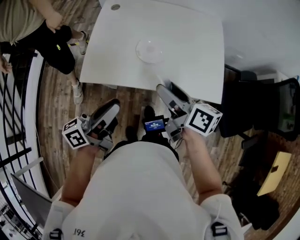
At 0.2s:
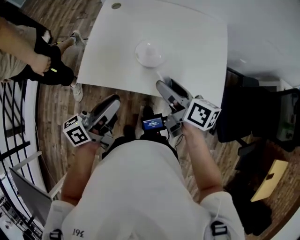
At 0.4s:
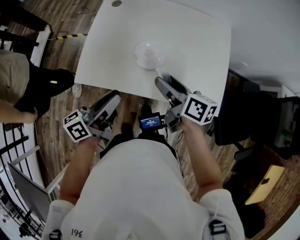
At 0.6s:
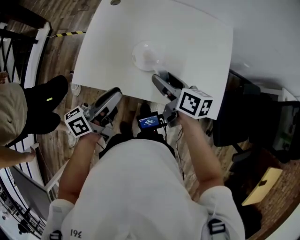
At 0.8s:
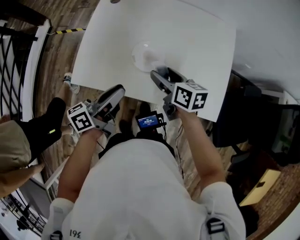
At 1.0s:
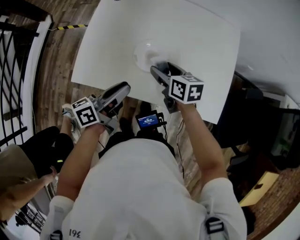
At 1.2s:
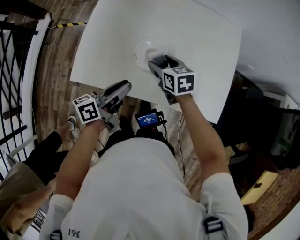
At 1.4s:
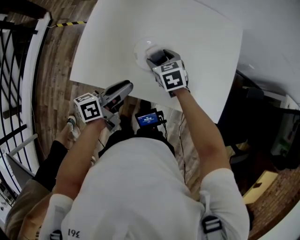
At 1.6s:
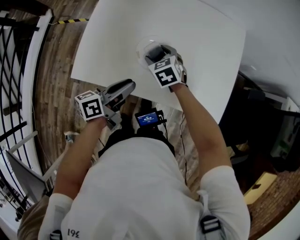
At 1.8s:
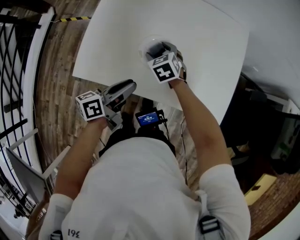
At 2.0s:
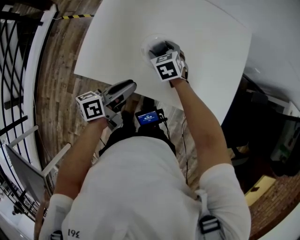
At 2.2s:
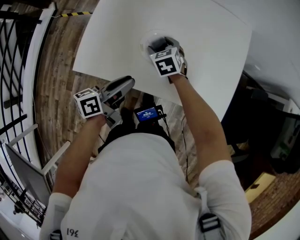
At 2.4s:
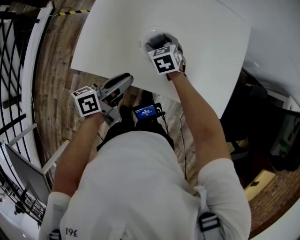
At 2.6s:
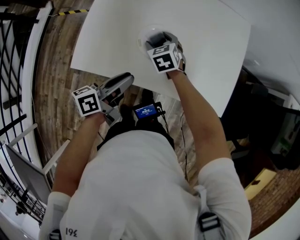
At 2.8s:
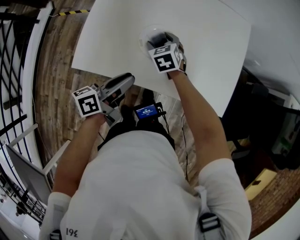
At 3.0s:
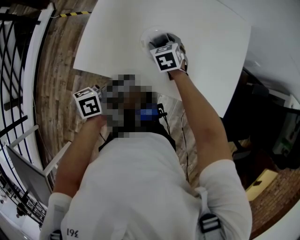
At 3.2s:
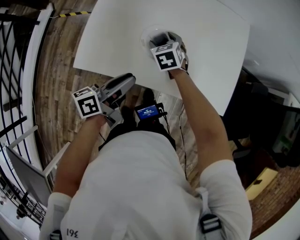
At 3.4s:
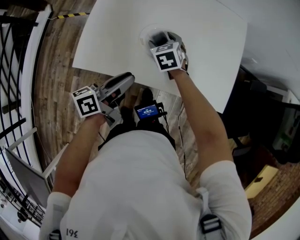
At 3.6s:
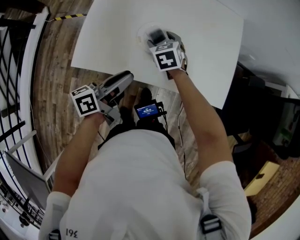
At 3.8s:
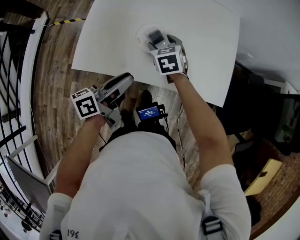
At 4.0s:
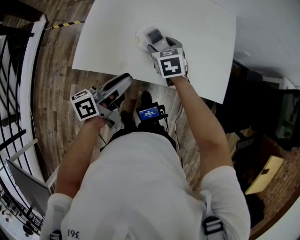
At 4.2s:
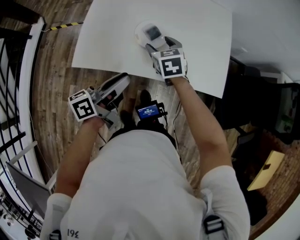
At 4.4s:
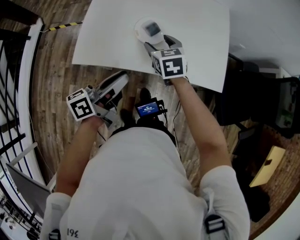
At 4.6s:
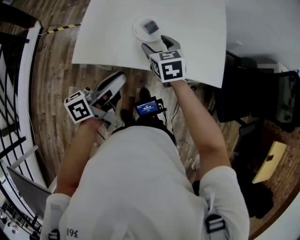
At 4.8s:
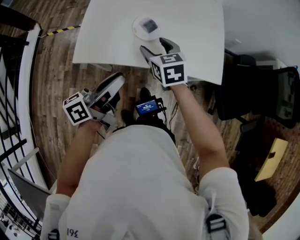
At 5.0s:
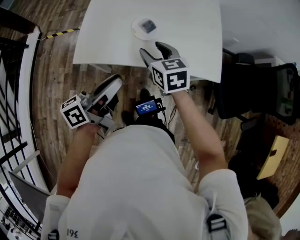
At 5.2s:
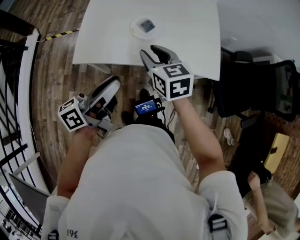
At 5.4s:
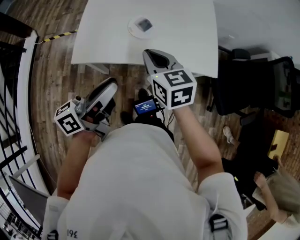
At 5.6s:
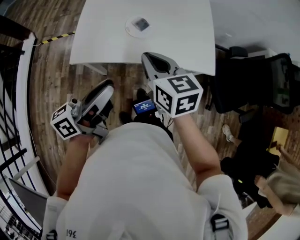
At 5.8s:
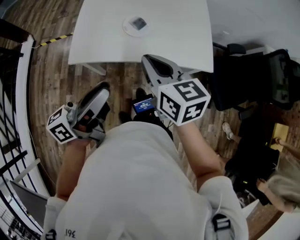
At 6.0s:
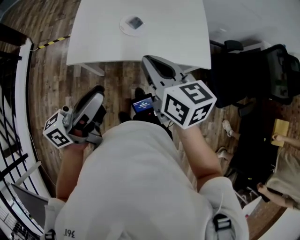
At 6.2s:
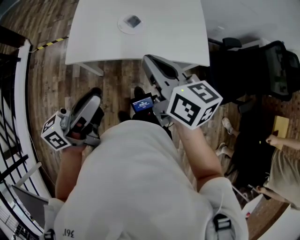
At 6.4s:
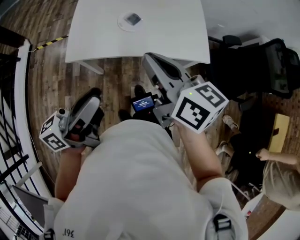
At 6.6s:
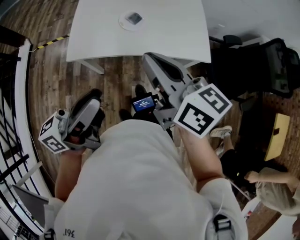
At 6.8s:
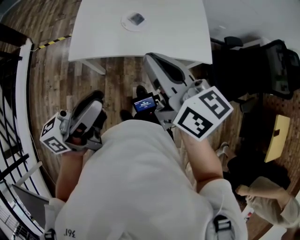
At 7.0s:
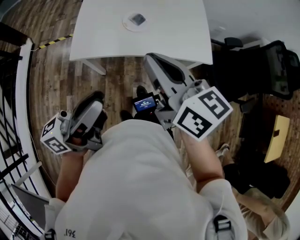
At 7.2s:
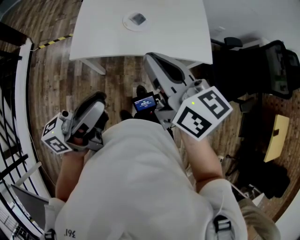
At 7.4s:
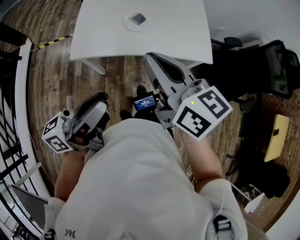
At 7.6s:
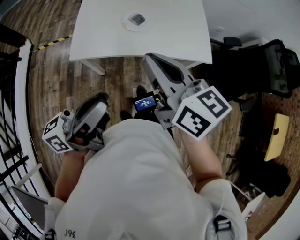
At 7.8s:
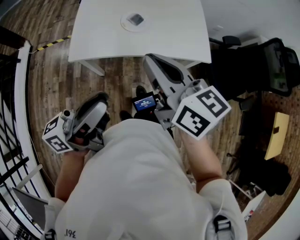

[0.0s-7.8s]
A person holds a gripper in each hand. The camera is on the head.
0.0s to 1.6s: The two grippers go some 25 cm forward and downward. The right gripper twists about 60 degrees counterclockwise, seen from behind.
1.6s to 3.2s: The grippers make only small movements.
3.2s to 4.6s: The grippers both shift backward and upward by some 15 cm.
4.6s to 6.2s: Both grippers travel together backward and upward, roughly 25 cm. The right gripper swivels roughly 40 degrees, and closes its fingers.
6.2s to 7.8s: The right gripper moves roughly 5 cm.

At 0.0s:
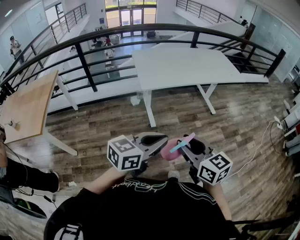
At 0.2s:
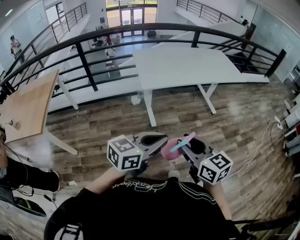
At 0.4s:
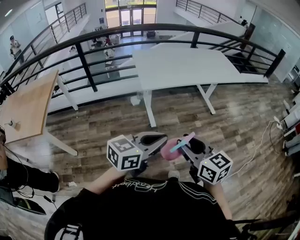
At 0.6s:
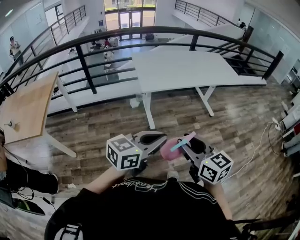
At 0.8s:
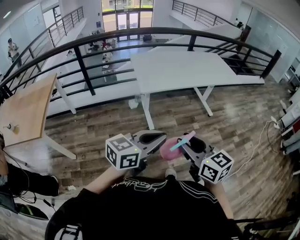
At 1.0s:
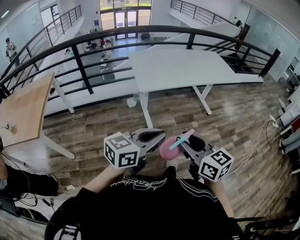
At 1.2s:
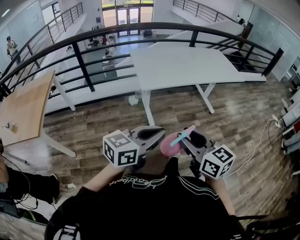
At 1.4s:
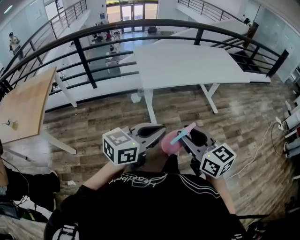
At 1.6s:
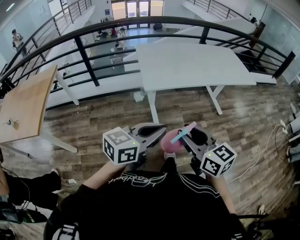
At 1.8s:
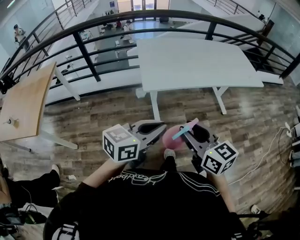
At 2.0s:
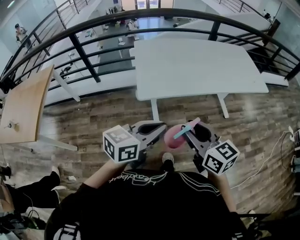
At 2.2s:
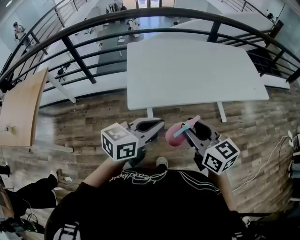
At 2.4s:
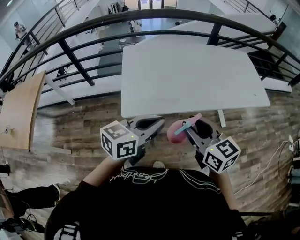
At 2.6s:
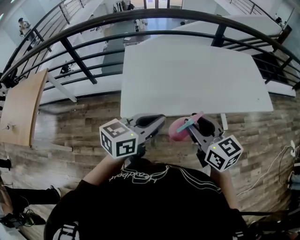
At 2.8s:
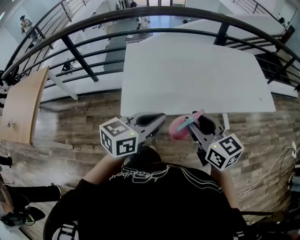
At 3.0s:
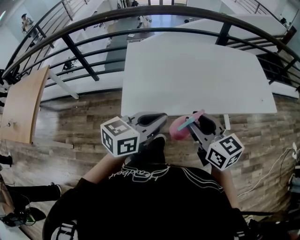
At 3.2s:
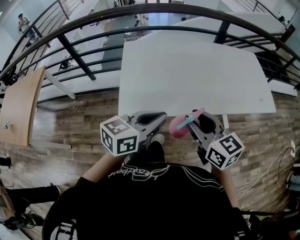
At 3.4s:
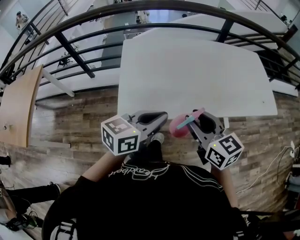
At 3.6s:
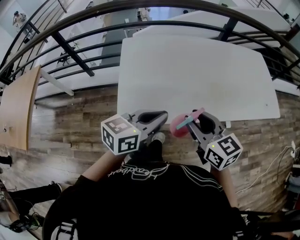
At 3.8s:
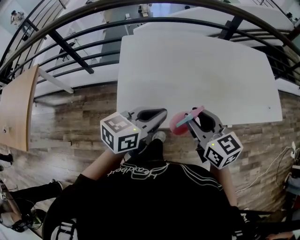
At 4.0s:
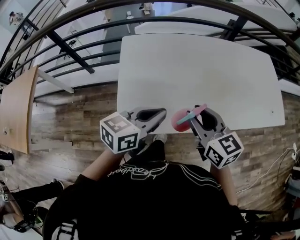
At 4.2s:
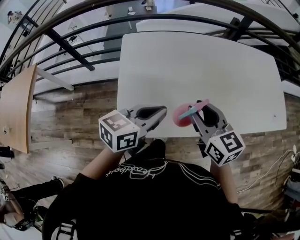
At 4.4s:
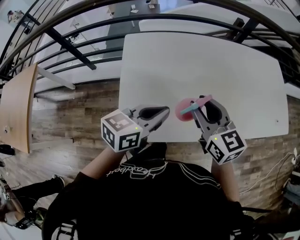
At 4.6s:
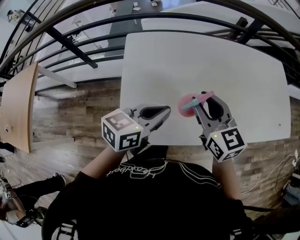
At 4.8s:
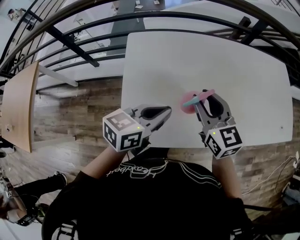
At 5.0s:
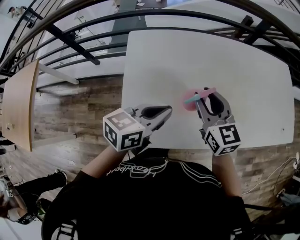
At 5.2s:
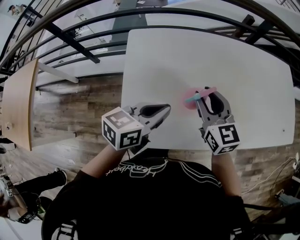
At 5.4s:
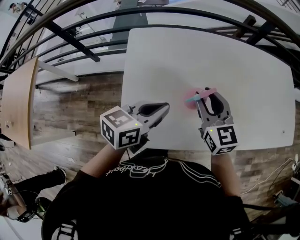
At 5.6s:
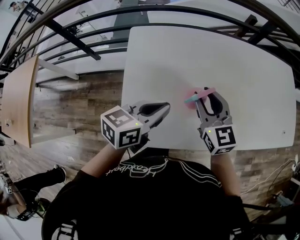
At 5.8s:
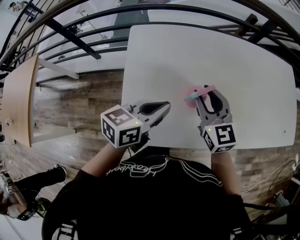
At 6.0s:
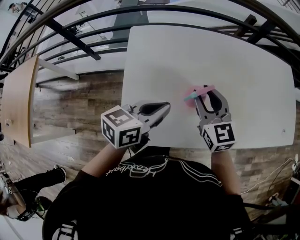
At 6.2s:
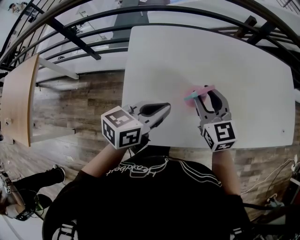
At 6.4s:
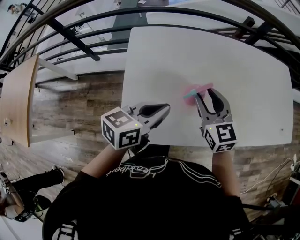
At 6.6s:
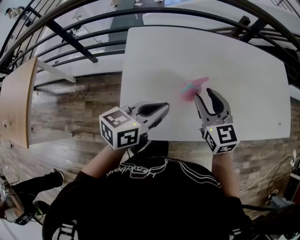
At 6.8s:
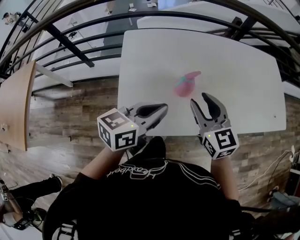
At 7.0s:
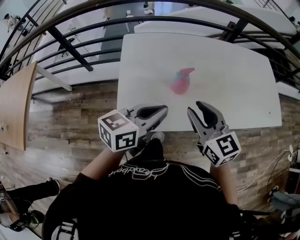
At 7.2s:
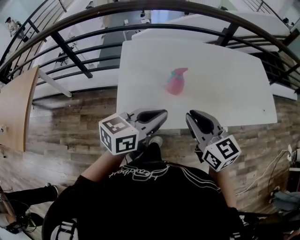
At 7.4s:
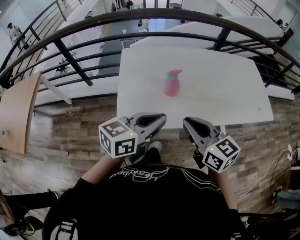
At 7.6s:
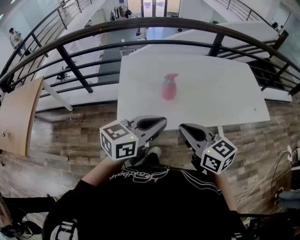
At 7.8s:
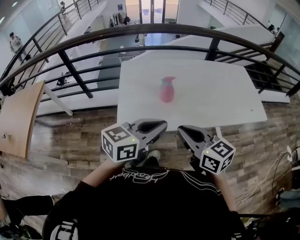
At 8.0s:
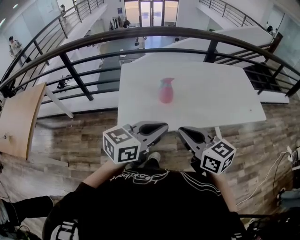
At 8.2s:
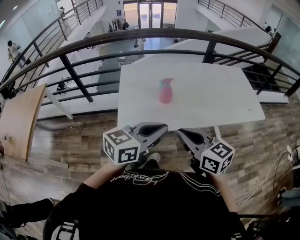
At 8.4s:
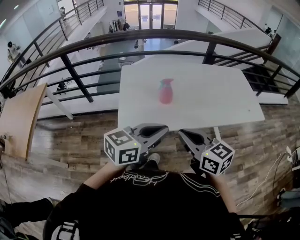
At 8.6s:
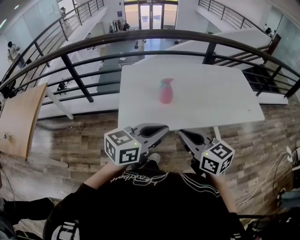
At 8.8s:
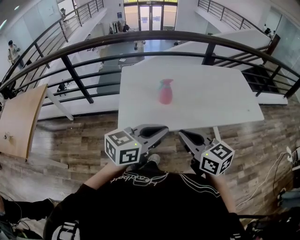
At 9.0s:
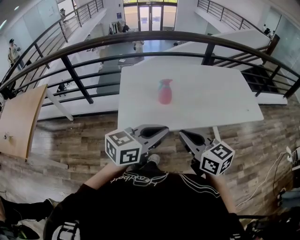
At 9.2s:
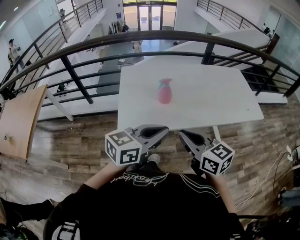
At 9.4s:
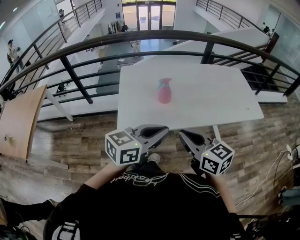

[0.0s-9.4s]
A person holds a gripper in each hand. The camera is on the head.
0.0s to 1.6s: The grippers both shift forward by roughly 10 cm.
1.6s to 3.2s: Both grippers travel together forward, some 35 cm.
3.2s to 4.8s: The left gripper shifts some 25 cm forward and downward. Meanwhile the right gripper goes about 25 cm forward.
4.8s to 6.2s: There are only small adjustments of the grippers.
6.2s to 7.8s: The grippers both shift backward and upward by about 30 cm. The left gripper swivels about 20 degrees. Meanwhile the right gripper closes its fingers.
7.8s to 9.4s: The grippers move only a little.

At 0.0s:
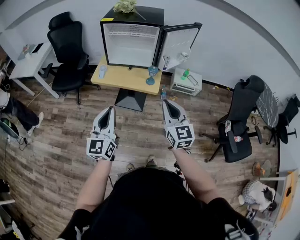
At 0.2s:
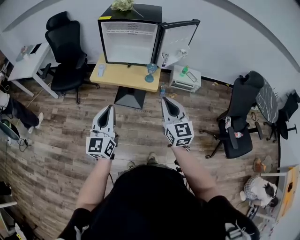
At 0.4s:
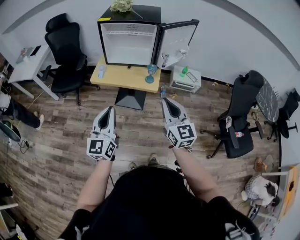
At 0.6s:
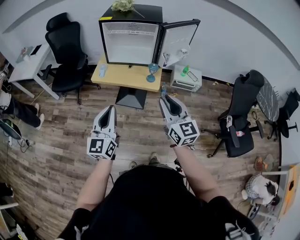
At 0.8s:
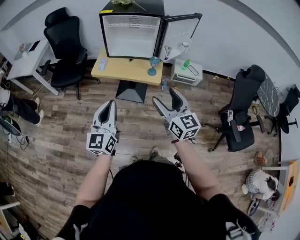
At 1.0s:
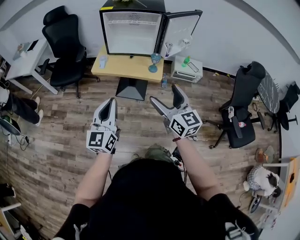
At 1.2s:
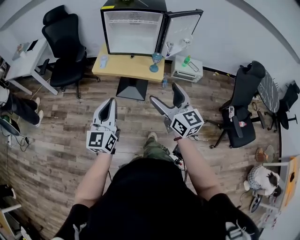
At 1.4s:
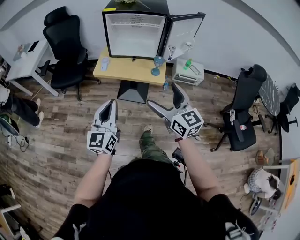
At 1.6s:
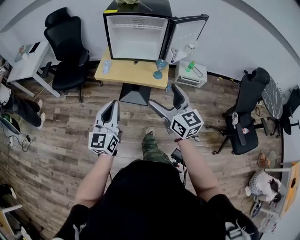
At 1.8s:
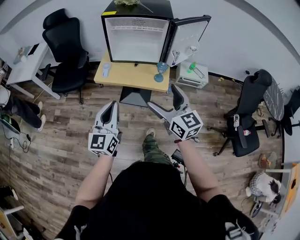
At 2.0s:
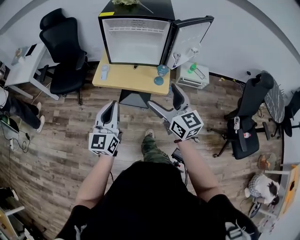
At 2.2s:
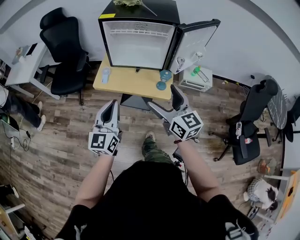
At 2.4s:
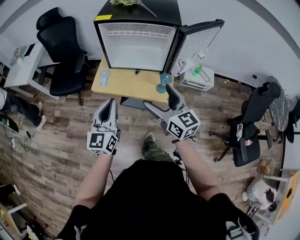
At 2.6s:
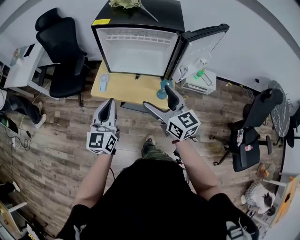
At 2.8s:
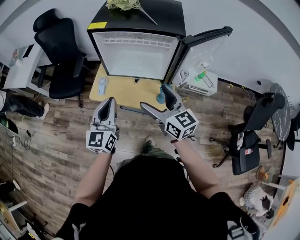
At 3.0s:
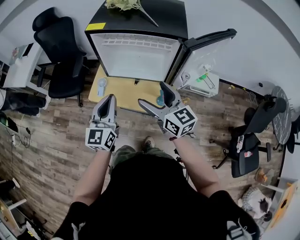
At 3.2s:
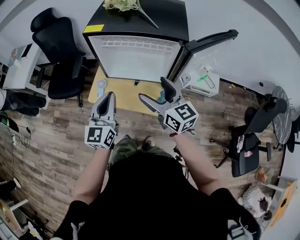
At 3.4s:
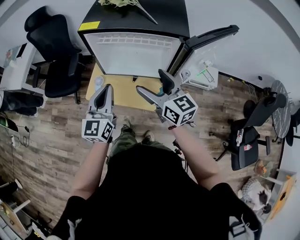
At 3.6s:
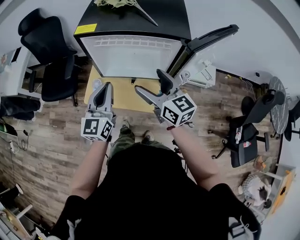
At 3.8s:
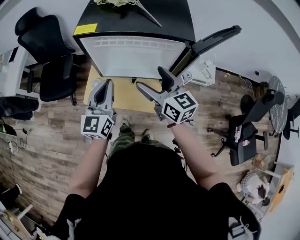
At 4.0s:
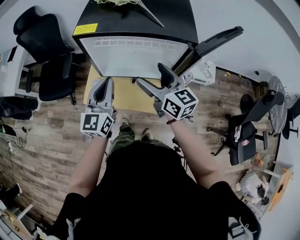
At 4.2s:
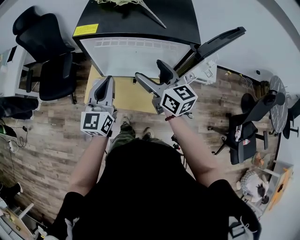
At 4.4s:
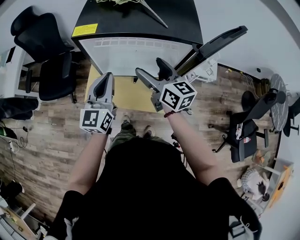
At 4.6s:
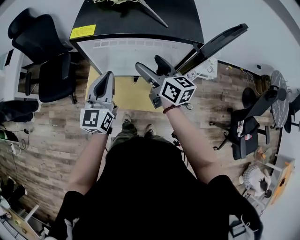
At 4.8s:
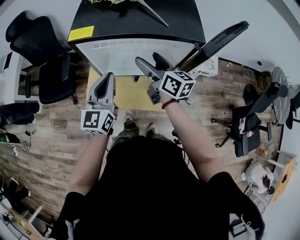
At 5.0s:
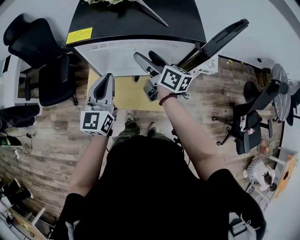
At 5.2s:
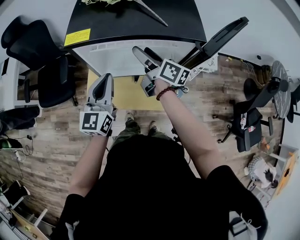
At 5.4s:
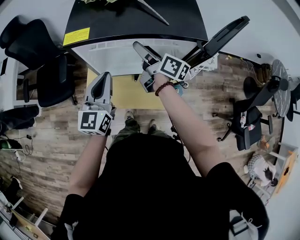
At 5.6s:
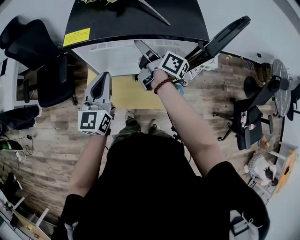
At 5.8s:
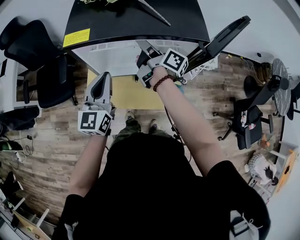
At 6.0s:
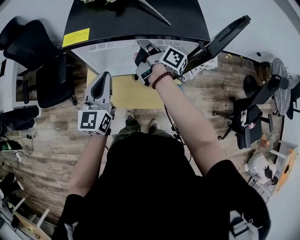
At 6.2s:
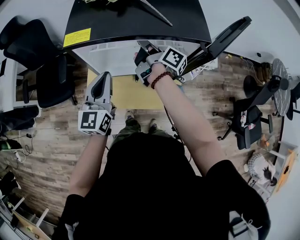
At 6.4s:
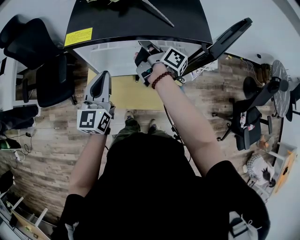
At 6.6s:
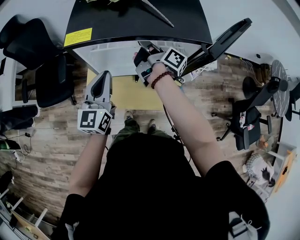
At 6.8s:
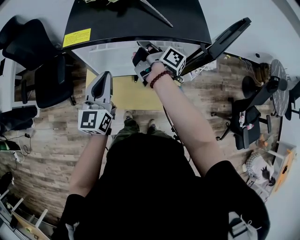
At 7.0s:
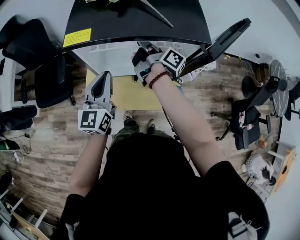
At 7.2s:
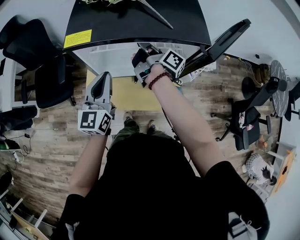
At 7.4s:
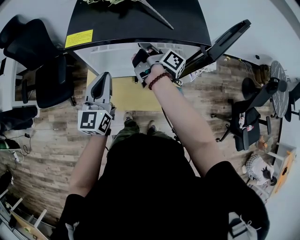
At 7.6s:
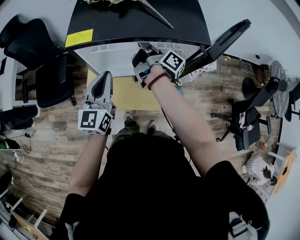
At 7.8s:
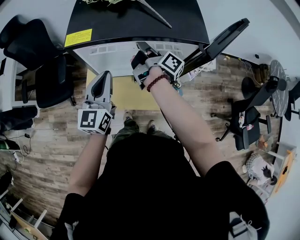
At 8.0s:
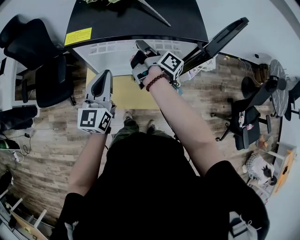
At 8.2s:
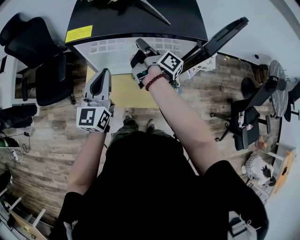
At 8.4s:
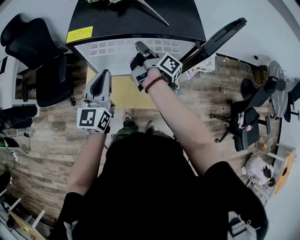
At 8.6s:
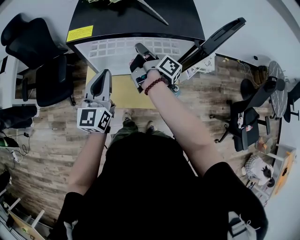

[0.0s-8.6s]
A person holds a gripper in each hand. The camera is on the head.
0.0s to 1.4s: The right gripper moves to the left, some 10 cm, and opens its fingers. Meanwhile the left gripper ends up approximately 5 cm from where it was.
1.4s to 2.8s: The two grippers go roughly 25 cm forward.
2.8s to 4.4s: The two grippers go some 15 cm forward.
4.4s to 5.8s: The right gripper goes about 10 cm forward, rotates around the line of its fingers by some 50 degrees, clockwise from behind, and closes up.
5.8s to 7.2s: The right gripper closes its fingers.
7.2s to 8.6s: The grippers stay close to where they were, moving slightly.
